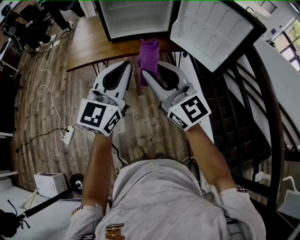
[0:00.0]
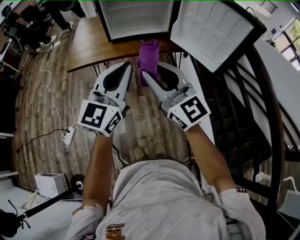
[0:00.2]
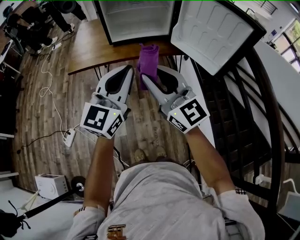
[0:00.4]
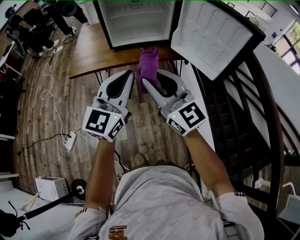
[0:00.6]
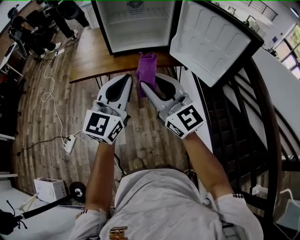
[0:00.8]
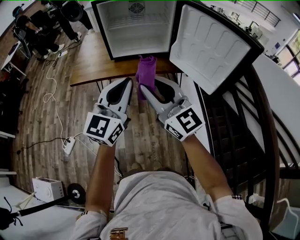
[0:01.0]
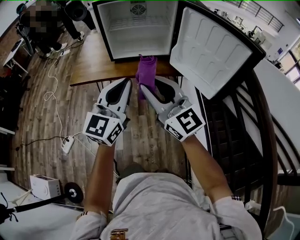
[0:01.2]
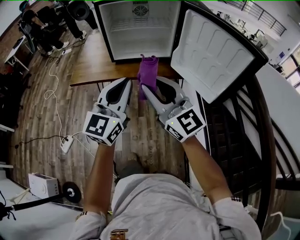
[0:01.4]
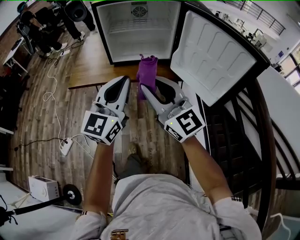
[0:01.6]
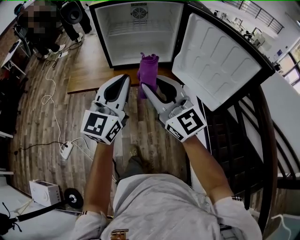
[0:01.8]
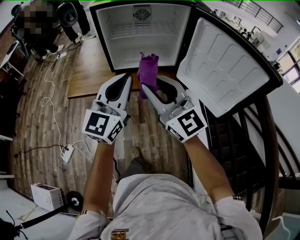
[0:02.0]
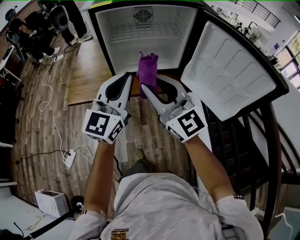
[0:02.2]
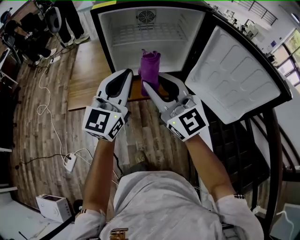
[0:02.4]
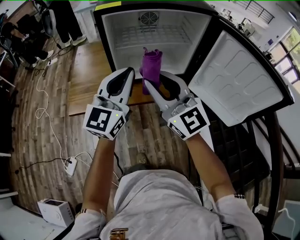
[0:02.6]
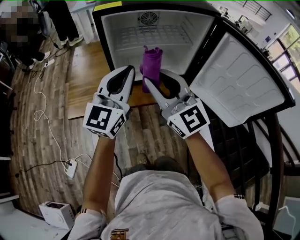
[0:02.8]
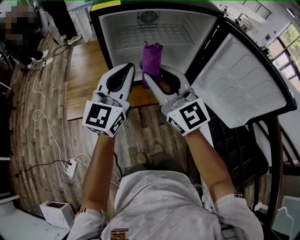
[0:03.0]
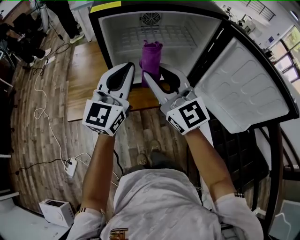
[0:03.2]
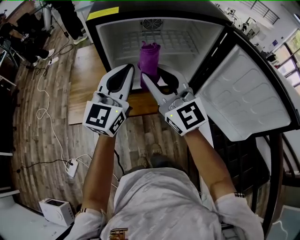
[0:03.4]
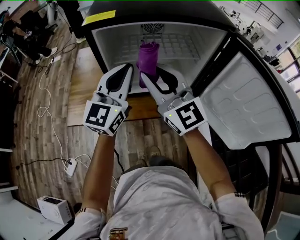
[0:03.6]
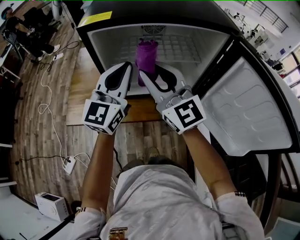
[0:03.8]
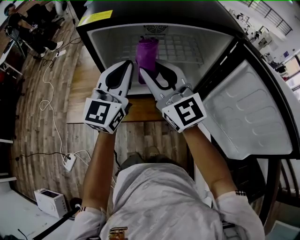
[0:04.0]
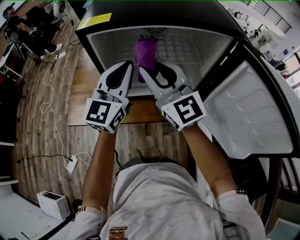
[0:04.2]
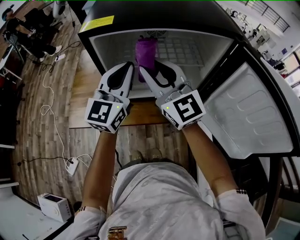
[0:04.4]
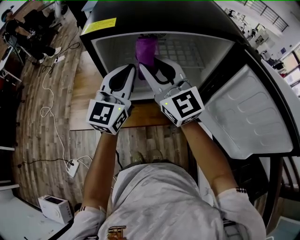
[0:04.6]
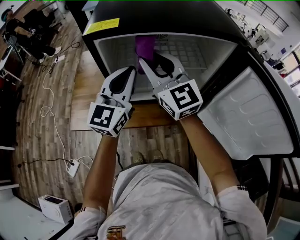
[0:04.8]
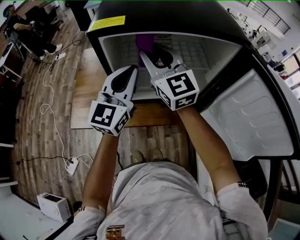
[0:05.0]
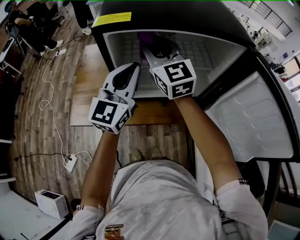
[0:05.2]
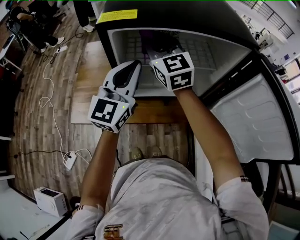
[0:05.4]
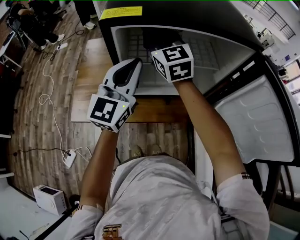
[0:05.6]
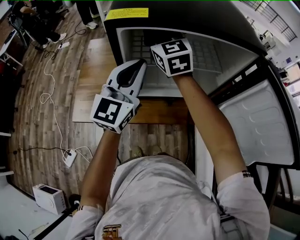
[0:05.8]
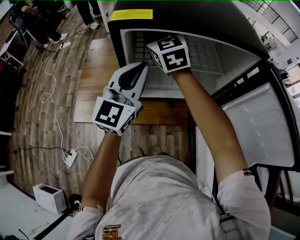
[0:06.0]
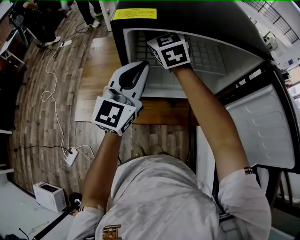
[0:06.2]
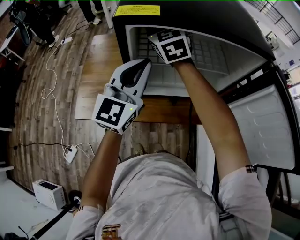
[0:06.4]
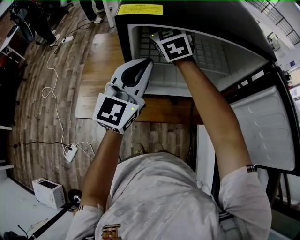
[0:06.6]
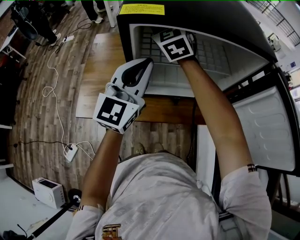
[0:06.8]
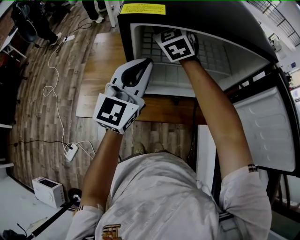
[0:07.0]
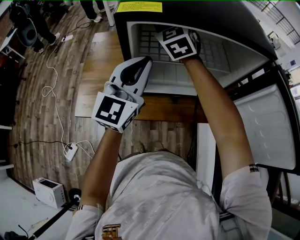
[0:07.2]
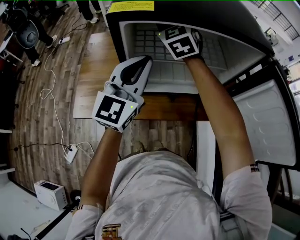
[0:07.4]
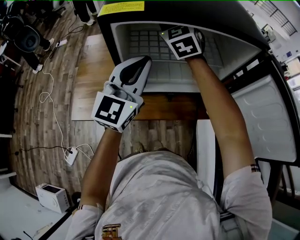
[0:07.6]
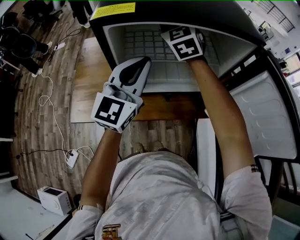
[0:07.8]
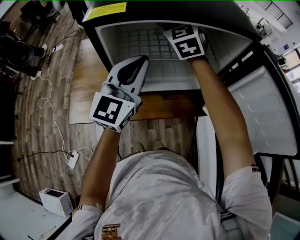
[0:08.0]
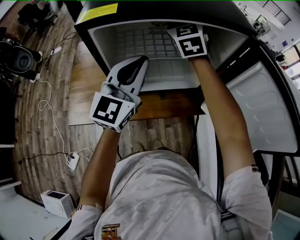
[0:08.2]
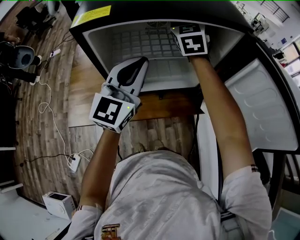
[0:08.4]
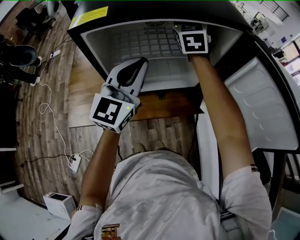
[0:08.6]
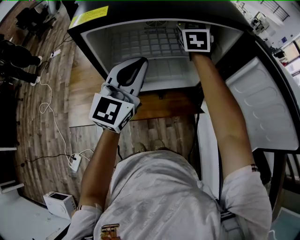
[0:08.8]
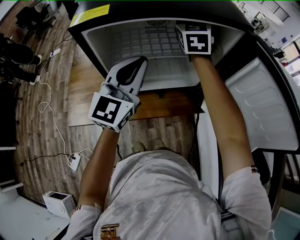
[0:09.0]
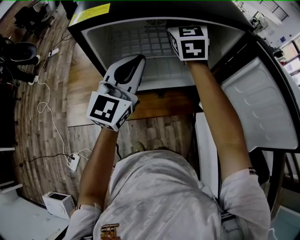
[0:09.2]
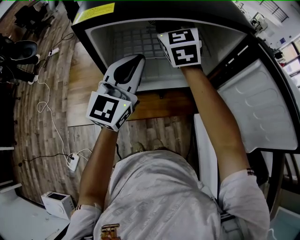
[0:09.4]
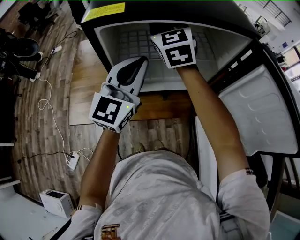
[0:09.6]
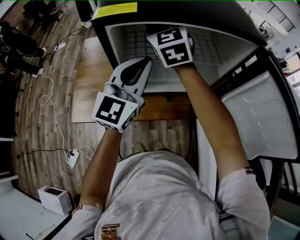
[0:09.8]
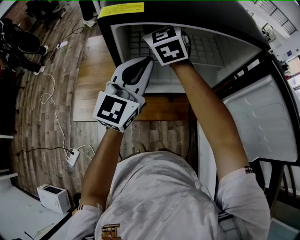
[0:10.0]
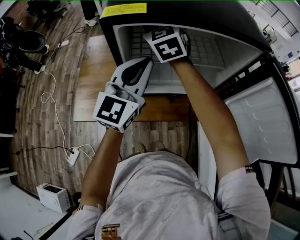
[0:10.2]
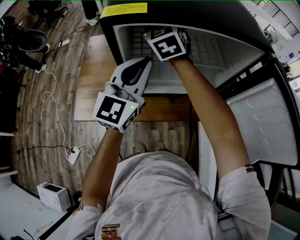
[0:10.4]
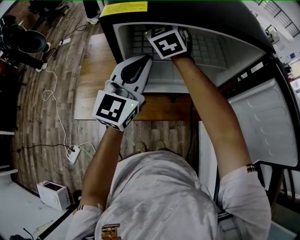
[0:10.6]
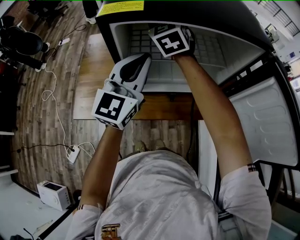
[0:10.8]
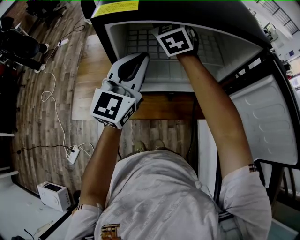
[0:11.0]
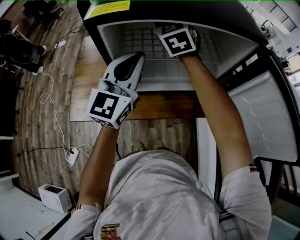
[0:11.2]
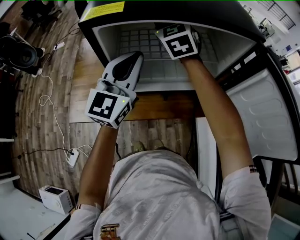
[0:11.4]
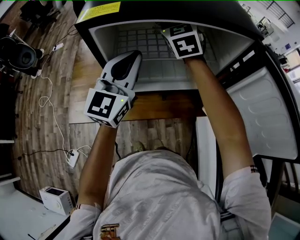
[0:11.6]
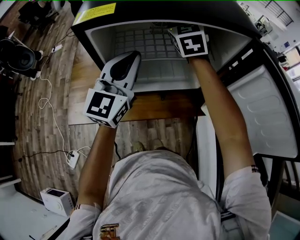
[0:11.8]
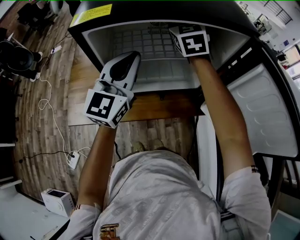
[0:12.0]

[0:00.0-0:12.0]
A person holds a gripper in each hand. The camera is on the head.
0:00.0 to 0:01.6: The left gripper heads forward, covering some 10 cm; the right gripper travels forward and to the right by approximately 10 cm.
0:01.6 to 0:03.0: The right gripper moves forward and to the left, roughly 25 cm. Meanwhile the left gripper heads forward, covering about 25 cm.
0:03.0 to 0:04.4: Both grippers travel together forward, approximately 10 cm.
0:04.4 to 0:06.0: The right gripper goes roughly 20 cm forward and to the left, and rotates some 20 degrees.
0:06.0 to 0:07.6: The right gripper moves to the right, roughly 5 cm.
0:07.6 to 0:09.0: The right gripper moves to the right, approximately 15 cm, and swivels some 20 degrees.
0:09.0 to 0:10.4: The right gripper shifts roughly 20 cm to the left, and swivels roughly 20 degrees. The left gripper is displaced to the left by about 5 cm.
0:10.4 to 0:12.0: The right gripper heads to the right, covering roughly 15 cm.

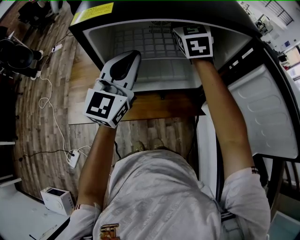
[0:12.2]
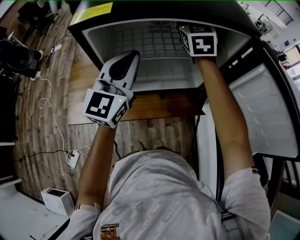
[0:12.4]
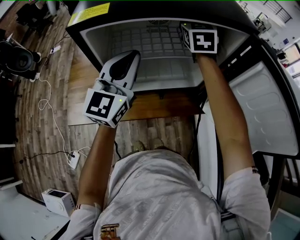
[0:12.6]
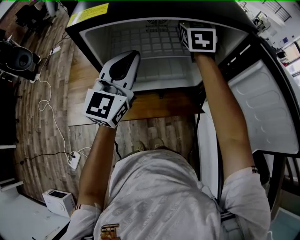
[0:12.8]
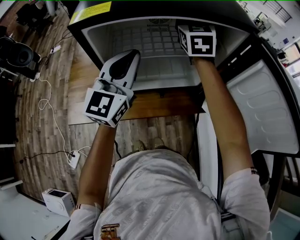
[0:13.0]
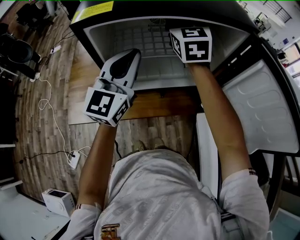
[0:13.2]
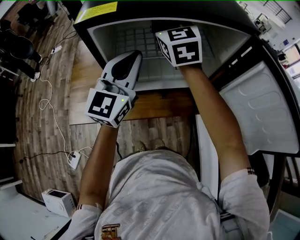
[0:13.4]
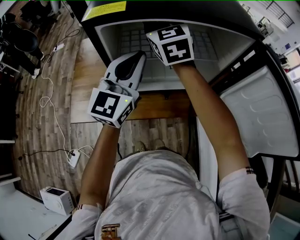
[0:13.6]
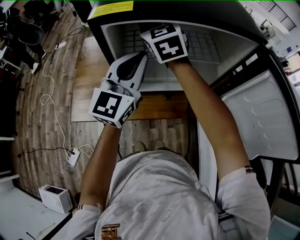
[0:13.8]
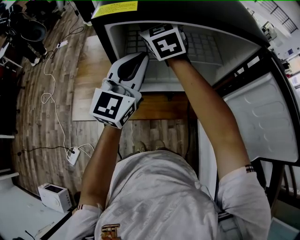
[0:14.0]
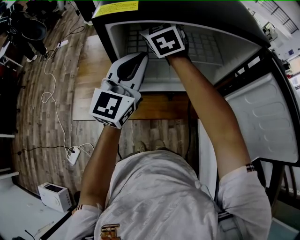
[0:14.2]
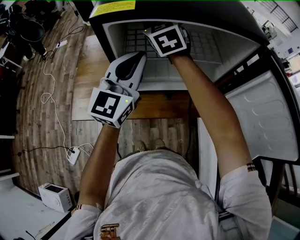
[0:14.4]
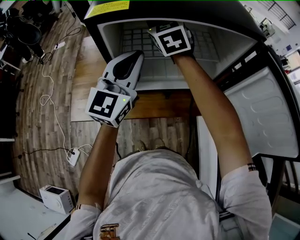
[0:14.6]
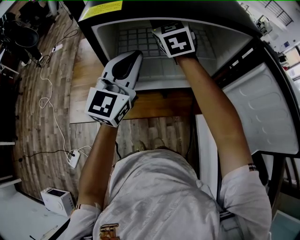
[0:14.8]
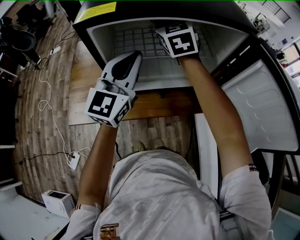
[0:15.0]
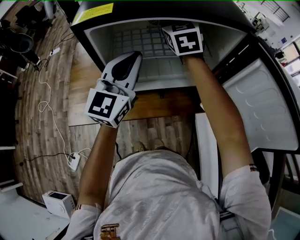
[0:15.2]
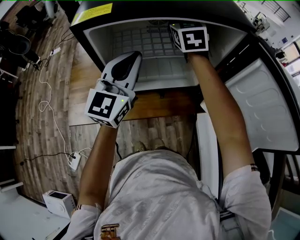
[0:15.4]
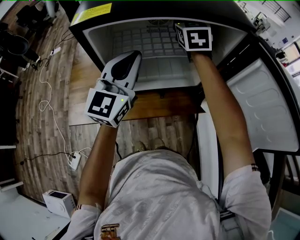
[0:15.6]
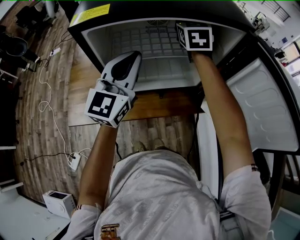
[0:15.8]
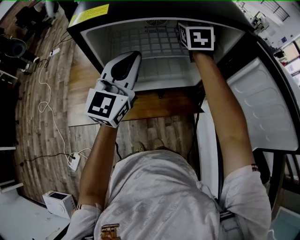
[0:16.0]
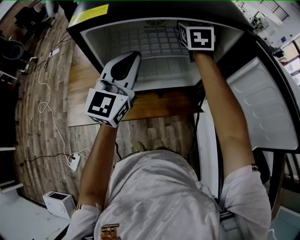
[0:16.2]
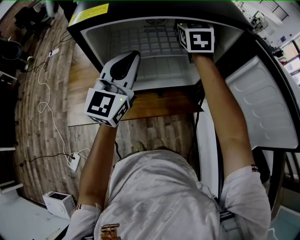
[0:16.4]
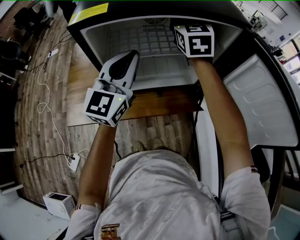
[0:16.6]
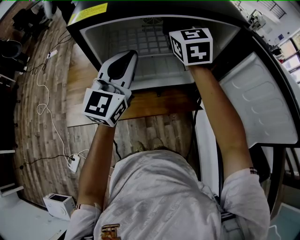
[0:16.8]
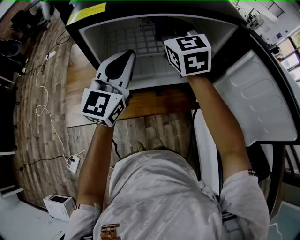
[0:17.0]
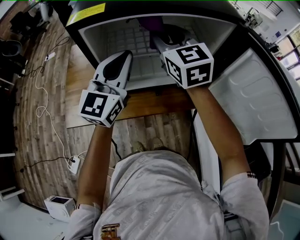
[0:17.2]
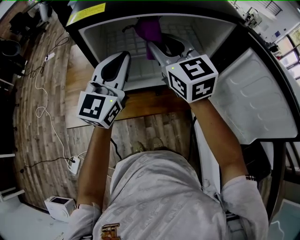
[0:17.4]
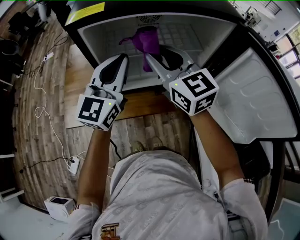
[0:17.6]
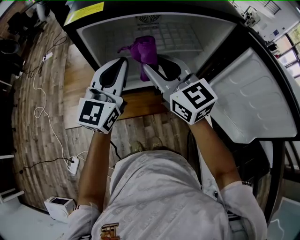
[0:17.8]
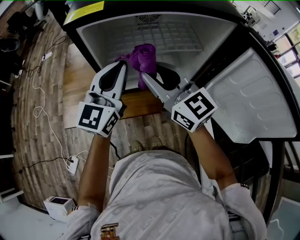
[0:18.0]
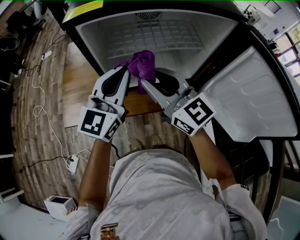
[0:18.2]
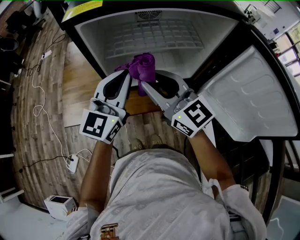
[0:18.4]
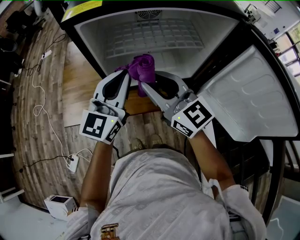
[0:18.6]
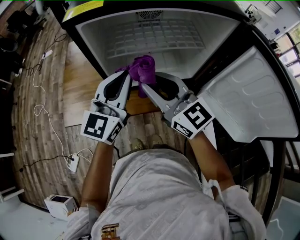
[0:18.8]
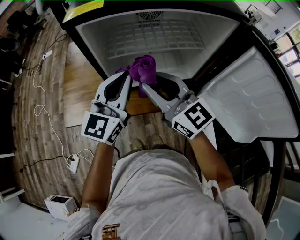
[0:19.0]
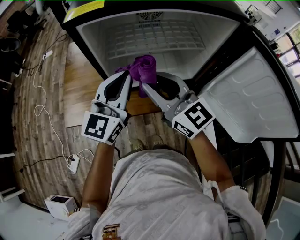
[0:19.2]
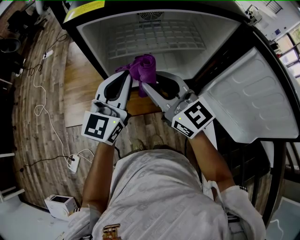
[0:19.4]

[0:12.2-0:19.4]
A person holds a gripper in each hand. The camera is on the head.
0:12.2 to 0:13.6: The right gripper travels to the left and backward by about 15 cm.
0:13.6 to 0:15.0: The right gripper heads to the right, covering roughly 5 cm.
0:15.0 to 0:16.6: The right gripper shifts some 10 cm to the right.
0:16.6 to 0:18.0: The right gripper heads backward, covering roughly 20 cm, and turns by some 40 degrees.
0:18.0 to 0:19.4: The grippers make only small movements.

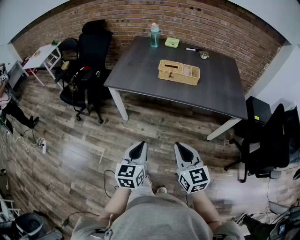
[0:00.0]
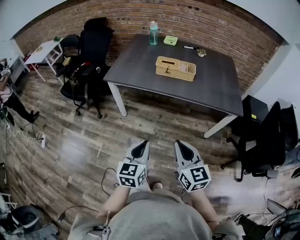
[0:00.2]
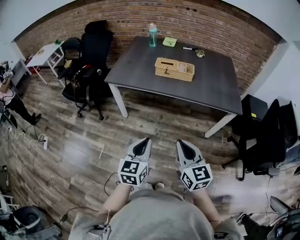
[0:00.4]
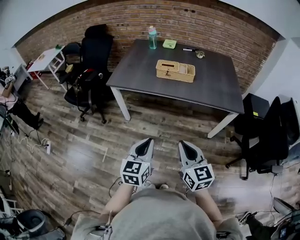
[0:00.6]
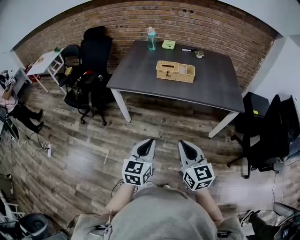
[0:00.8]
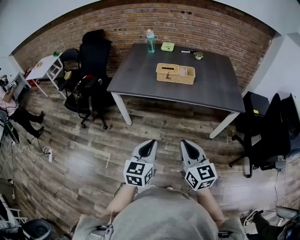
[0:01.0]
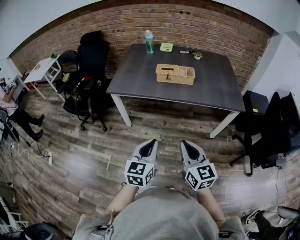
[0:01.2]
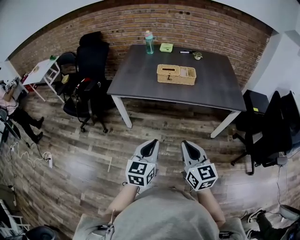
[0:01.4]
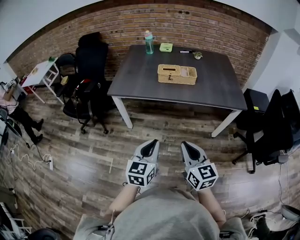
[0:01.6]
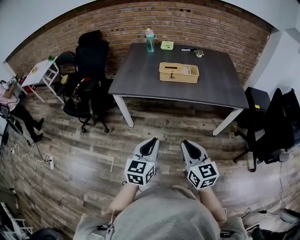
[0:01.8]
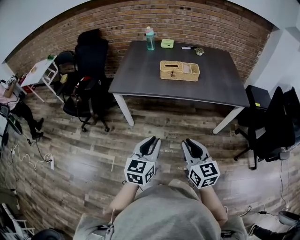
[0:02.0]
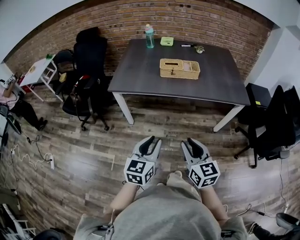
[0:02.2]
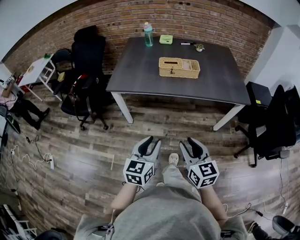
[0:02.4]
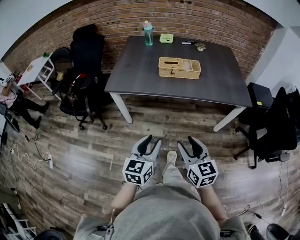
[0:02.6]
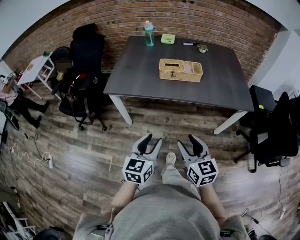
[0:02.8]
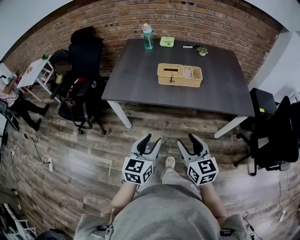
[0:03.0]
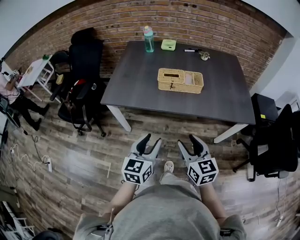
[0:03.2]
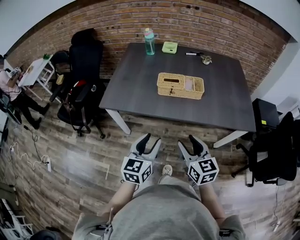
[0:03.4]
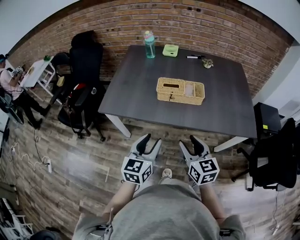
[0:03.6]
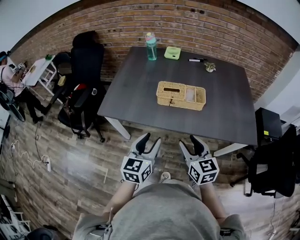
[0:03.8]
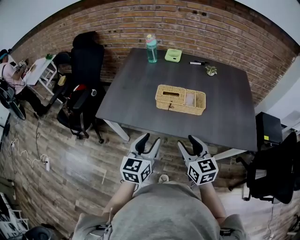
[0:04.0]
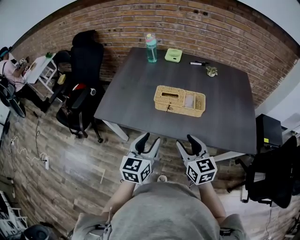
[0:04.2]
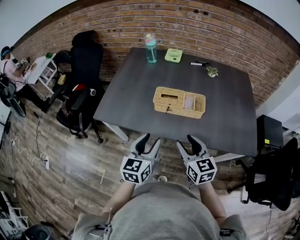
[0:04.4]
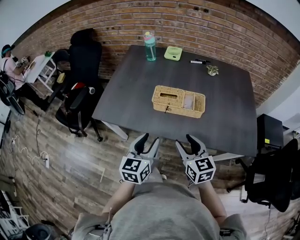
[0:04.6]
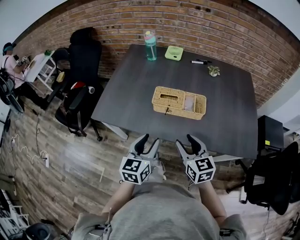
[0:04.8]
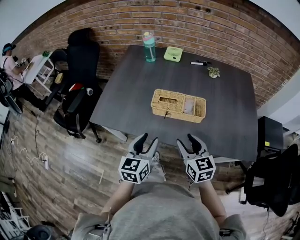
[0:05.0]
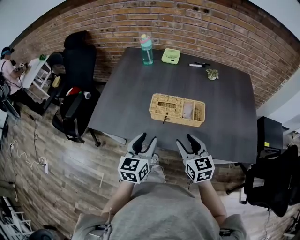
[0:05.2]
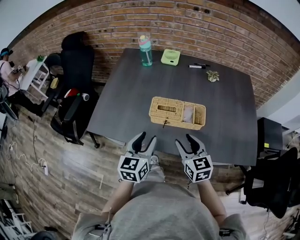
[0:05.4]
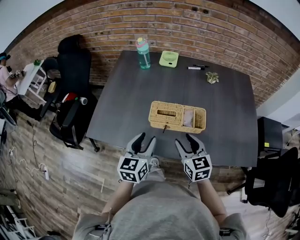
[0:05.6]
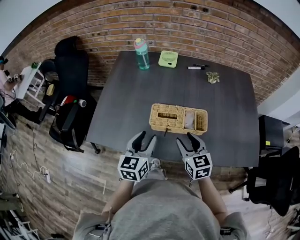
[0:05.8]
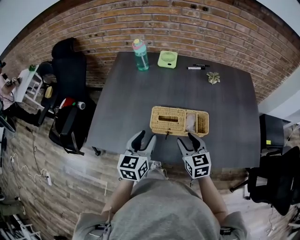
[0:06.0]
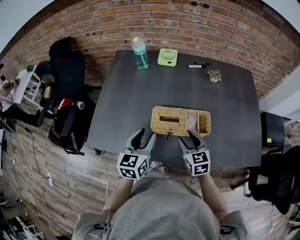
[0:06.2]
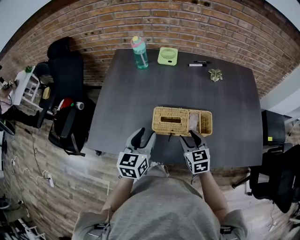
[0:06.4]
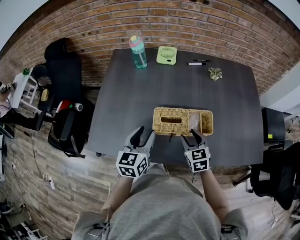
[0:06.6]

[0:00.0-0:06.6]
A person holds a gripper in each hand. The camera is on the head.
0:01.6 to 0:03.2: Both grippers move forward, roughly 20 cm. The left gripper opens, while the right gripper opens its fingers.
0:03.2 to 0:05.0: Both grippers move forward, some 25 cm.
0:05.0 to 0:06.6: The right gripper shifts some 20 cm forward and downward; the left gripper goes roughly 20 cm forward.
